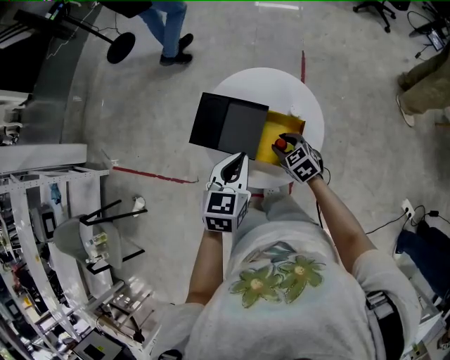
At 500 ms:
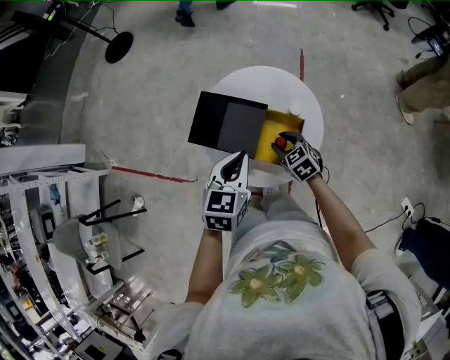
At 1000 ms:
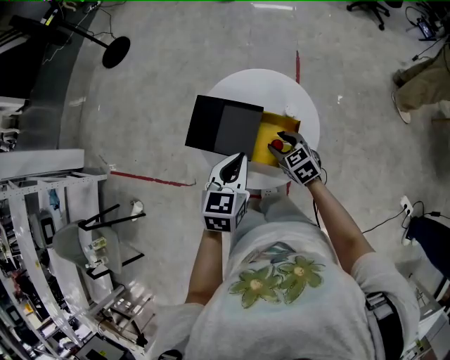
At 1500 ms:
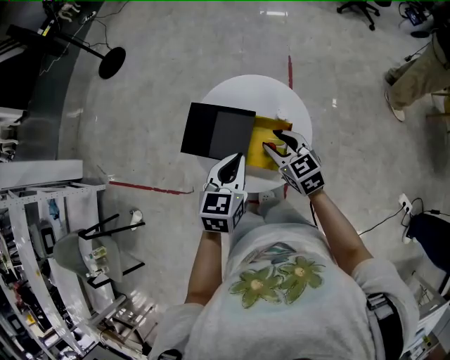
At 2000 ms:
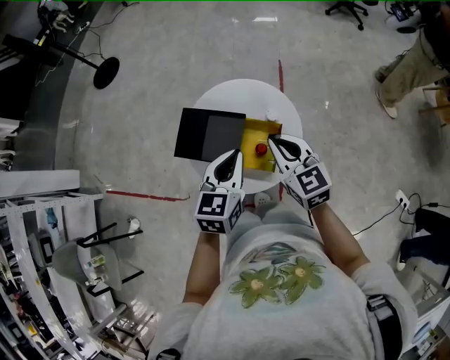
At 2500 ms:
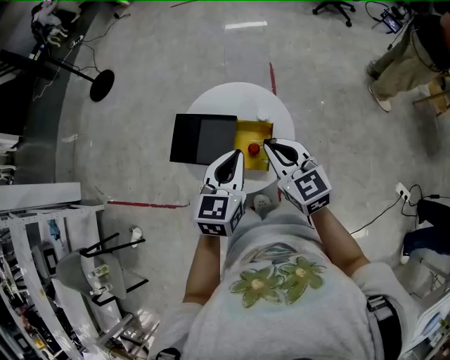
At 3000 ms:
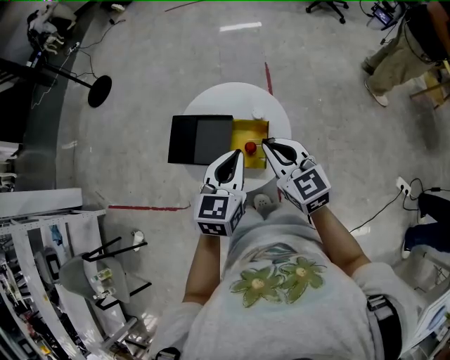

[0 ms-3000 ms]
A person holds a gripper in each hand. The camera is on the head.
0 ms to 1500 ms: The right gripper heads upward, covering approximately 15 cm.
1500 ms to 3000 ms: The right gripper shifts approximately 15 cm upward, backward and to the right, and closes, while the left gripper travels to the right and upward by about 10 cm.

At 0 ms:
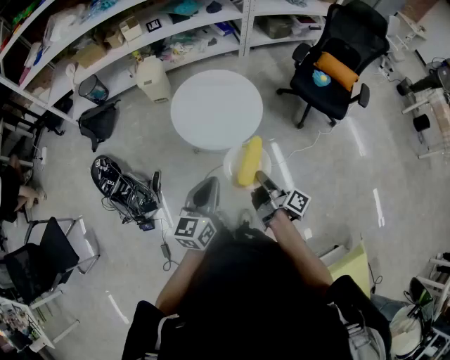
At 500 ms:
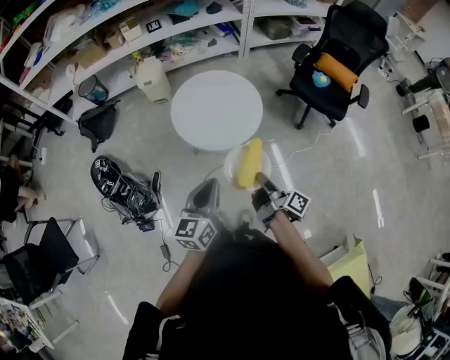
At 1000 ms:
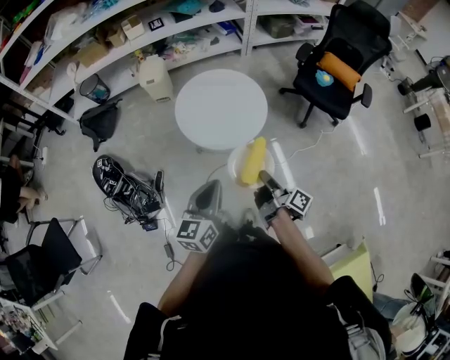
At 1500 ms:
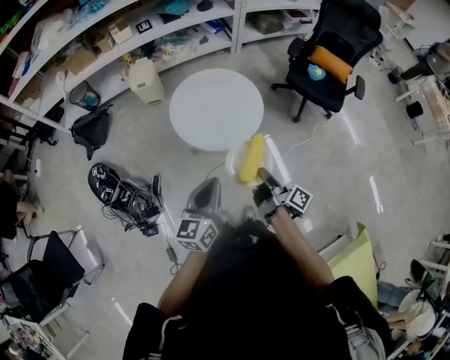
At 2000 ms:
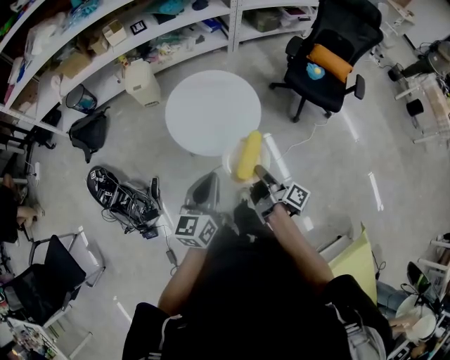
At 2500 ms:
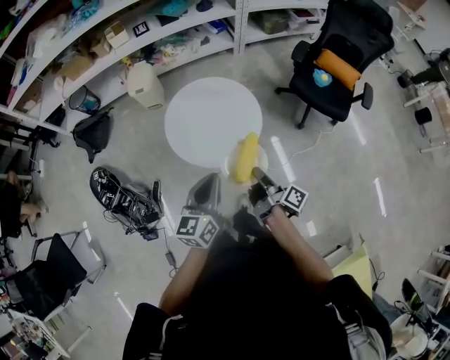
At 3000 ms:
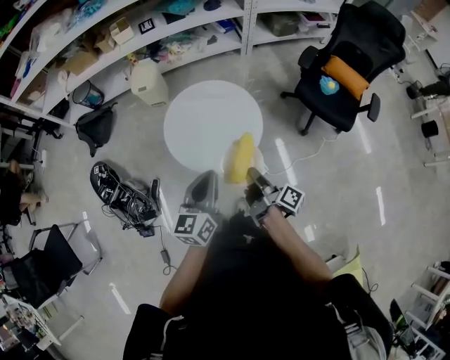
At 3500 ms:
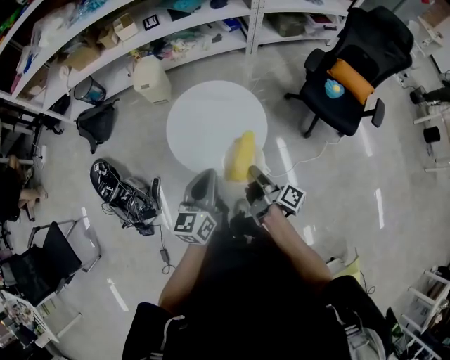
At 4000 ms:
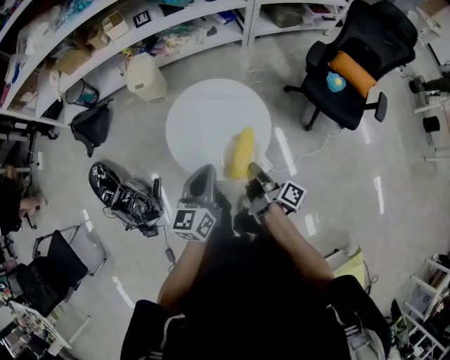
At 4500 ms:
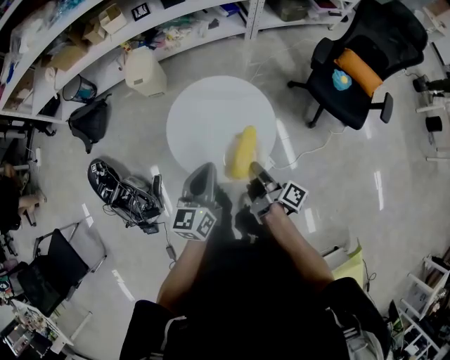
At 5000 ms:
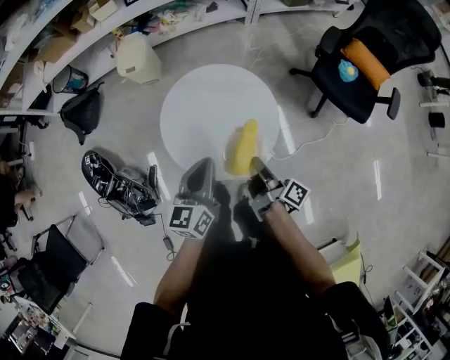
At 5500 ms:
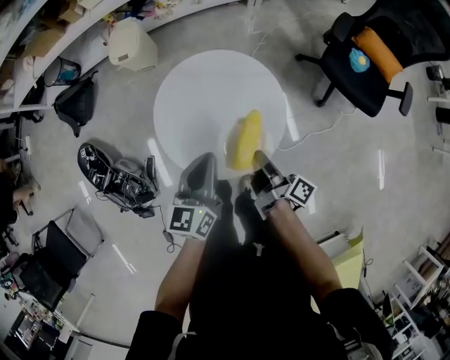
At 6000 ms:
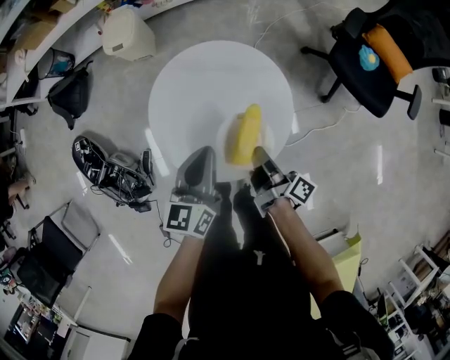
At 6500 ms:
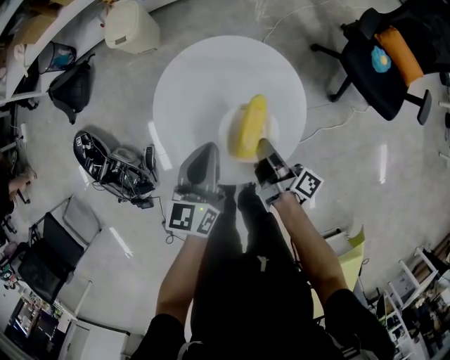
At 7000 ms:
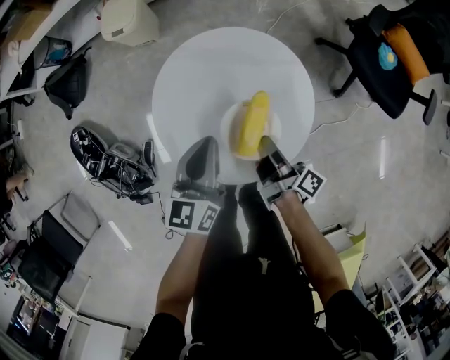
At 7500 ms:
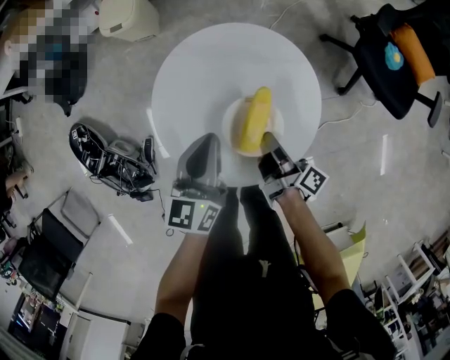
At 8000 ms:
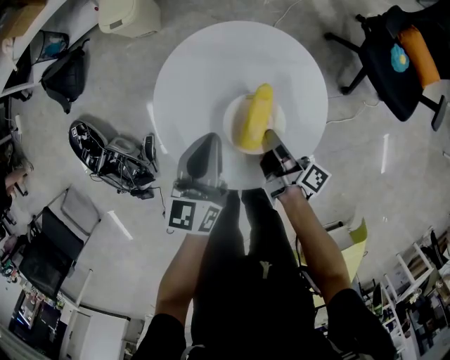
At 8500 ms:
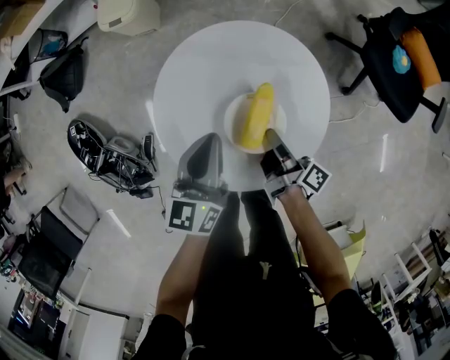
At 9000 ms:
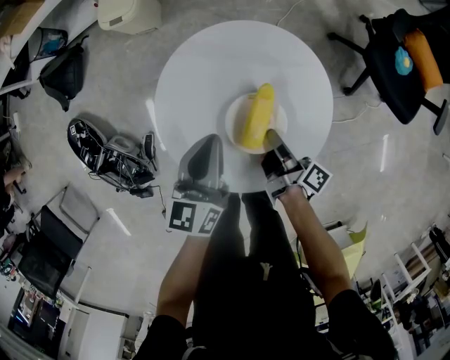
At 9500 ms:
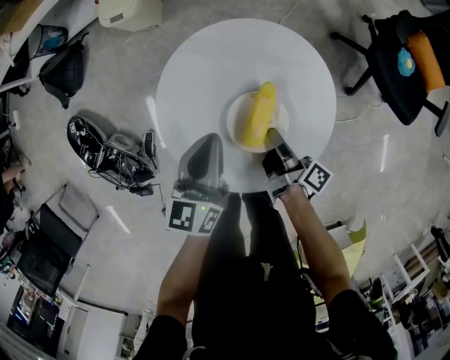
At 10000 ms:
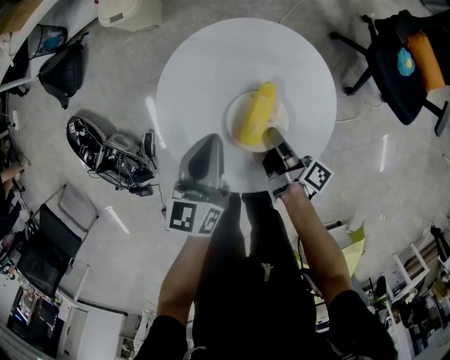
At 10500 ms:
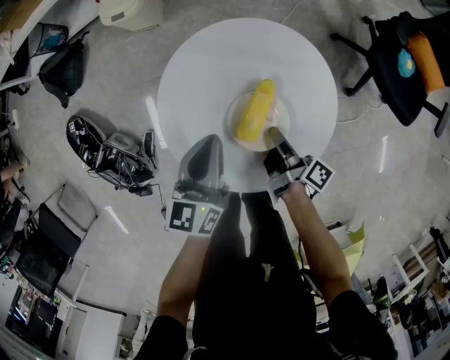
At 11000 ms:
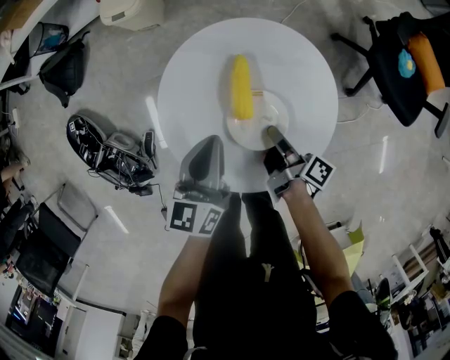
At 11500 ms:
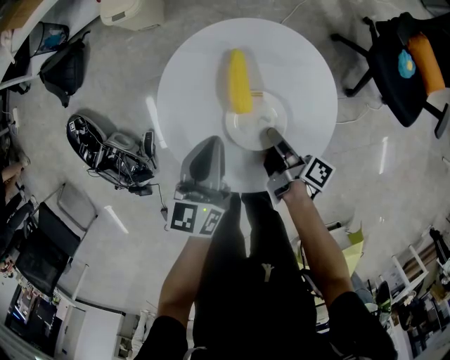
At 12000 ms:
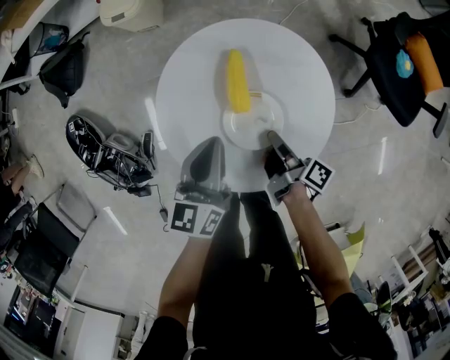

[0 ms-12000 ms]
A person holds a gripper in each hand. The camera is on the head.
0 ms to 2000 ms: The left gripper changes place by about 5 cm.
2000 ms to 4000 ms: The left gripper shifts by approximately 20 cm.
4000 ms to 6000 ms: The left gripper heads downward, covering approximately 15 cm.
6000 ms to 8000 ms: The left gripper shifts roughly 5 cm downward.

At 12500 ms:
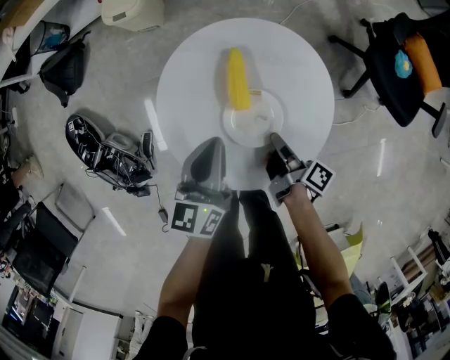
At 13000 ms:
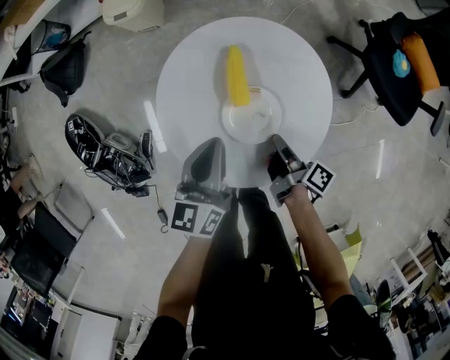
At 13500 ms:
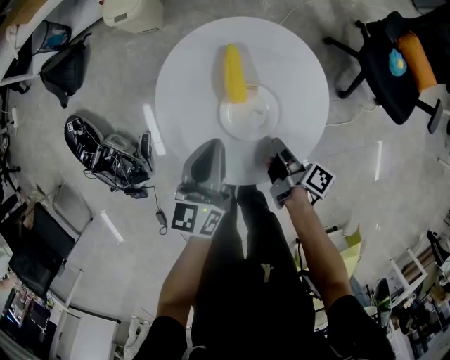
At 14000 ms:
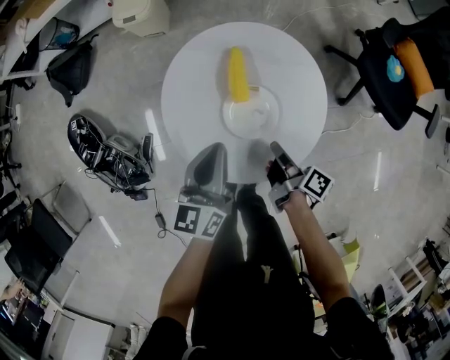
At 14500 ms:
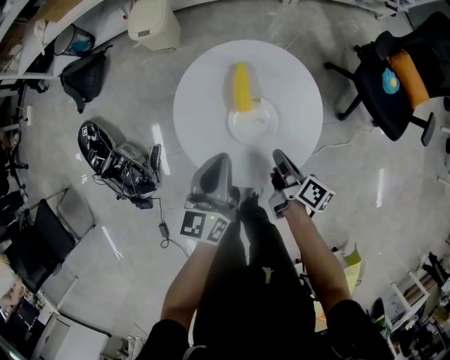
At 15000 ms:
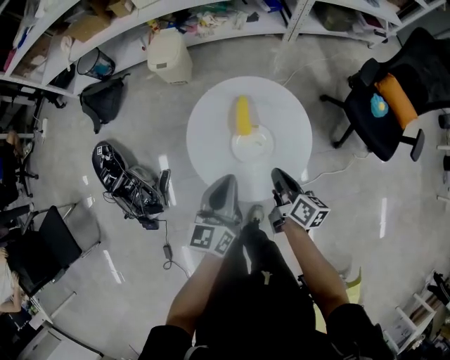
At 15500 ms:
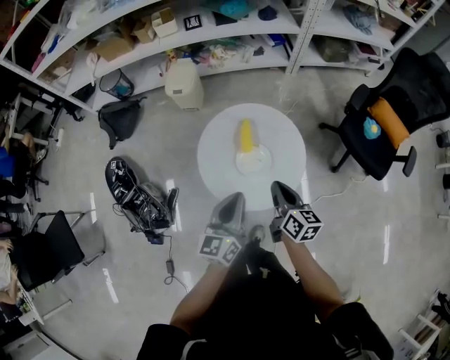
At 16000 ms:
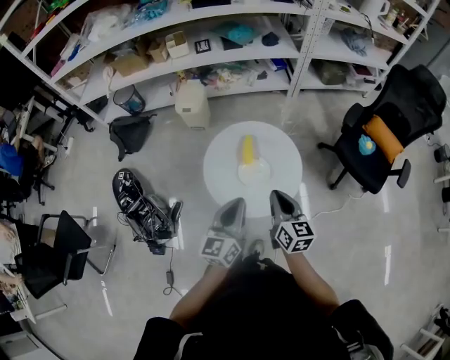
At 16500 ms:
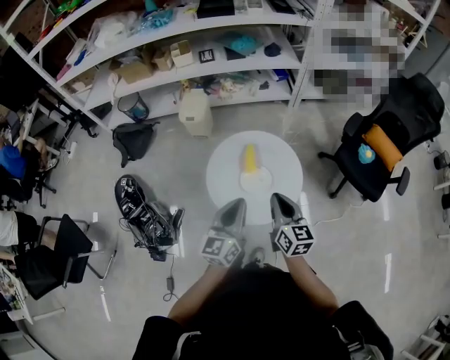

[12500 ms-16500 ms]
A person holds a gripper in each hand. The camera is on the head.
12500 ms to 14500 ms: The left gripper changes place by roughly 10 cm.
14500 ms to 16500 ms: The left gripper moves upward, approximately 15 cm.

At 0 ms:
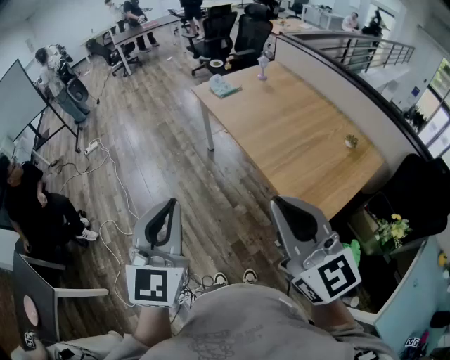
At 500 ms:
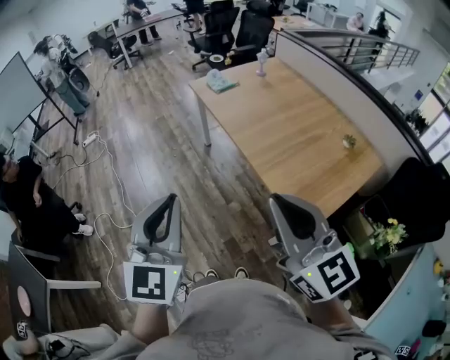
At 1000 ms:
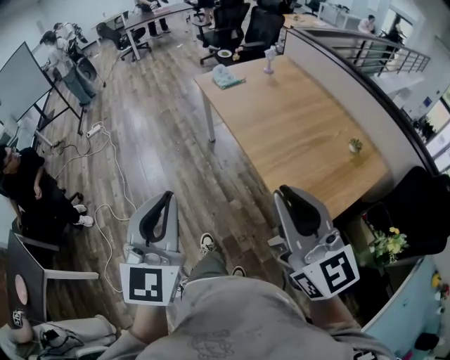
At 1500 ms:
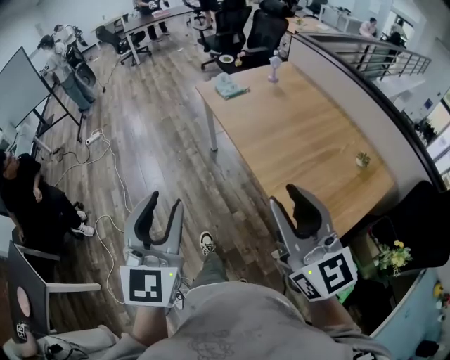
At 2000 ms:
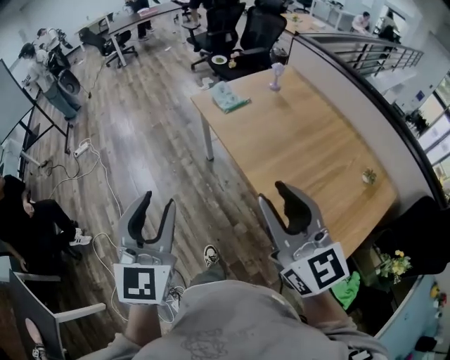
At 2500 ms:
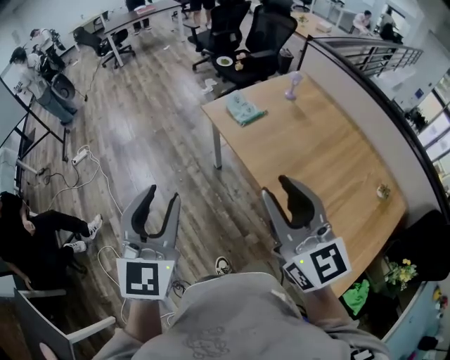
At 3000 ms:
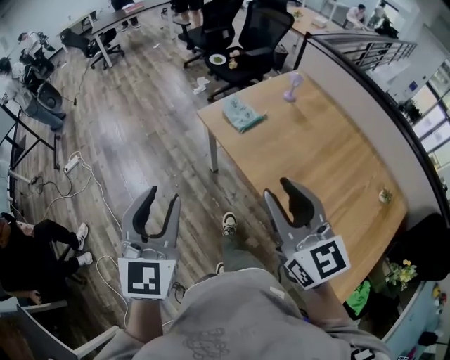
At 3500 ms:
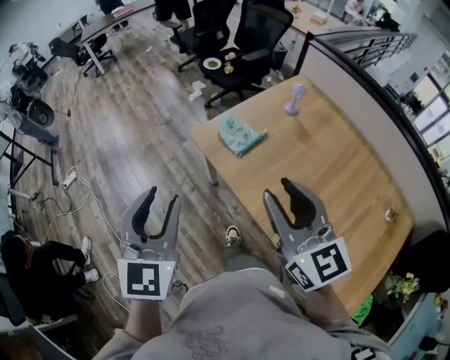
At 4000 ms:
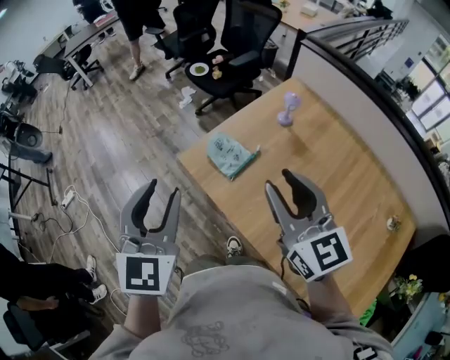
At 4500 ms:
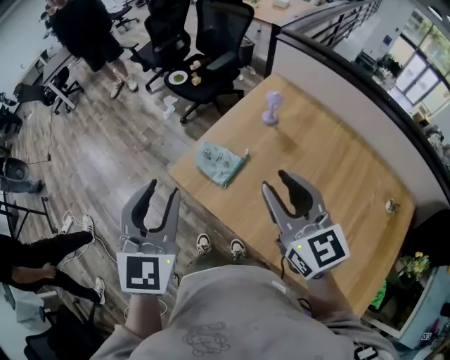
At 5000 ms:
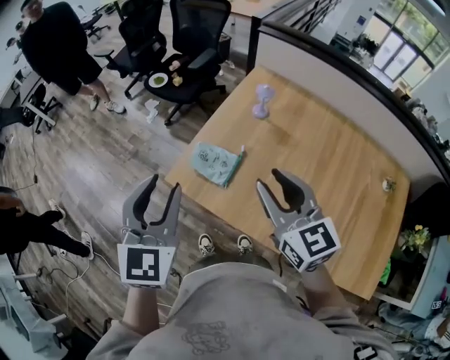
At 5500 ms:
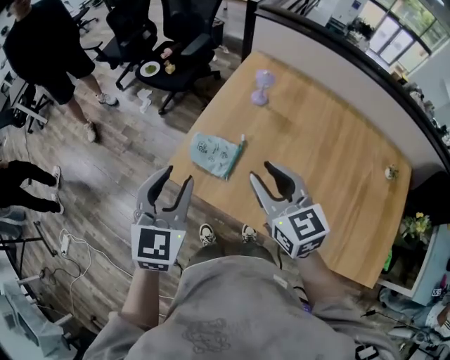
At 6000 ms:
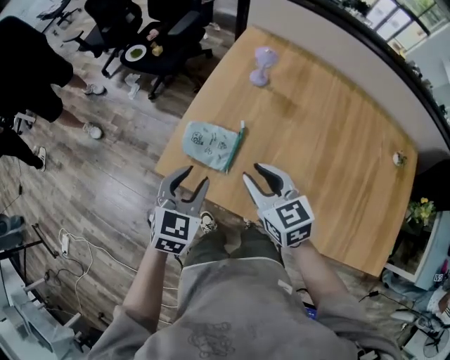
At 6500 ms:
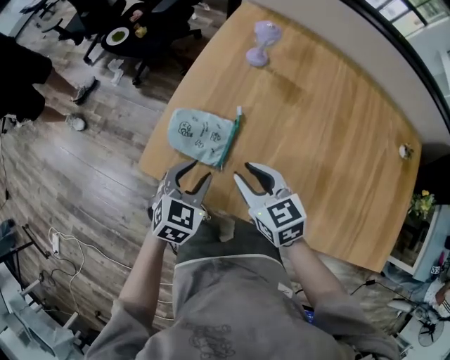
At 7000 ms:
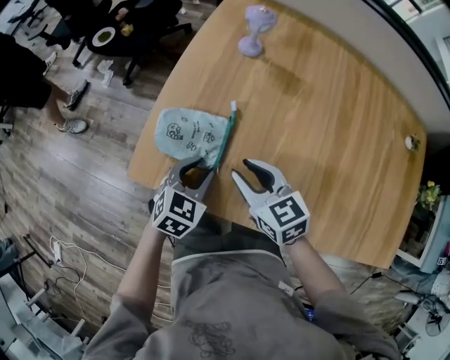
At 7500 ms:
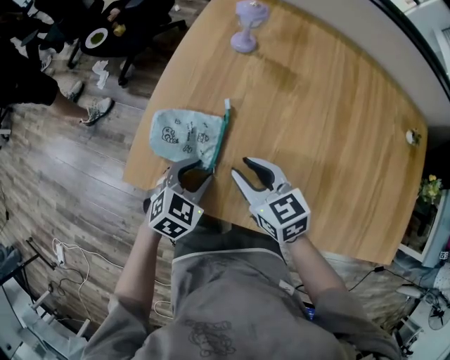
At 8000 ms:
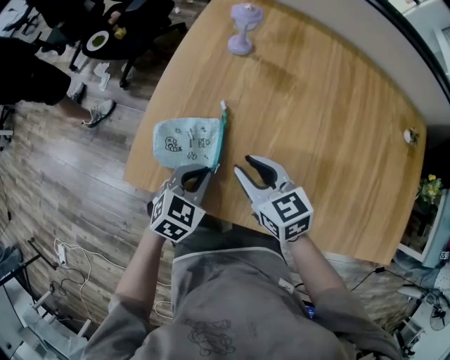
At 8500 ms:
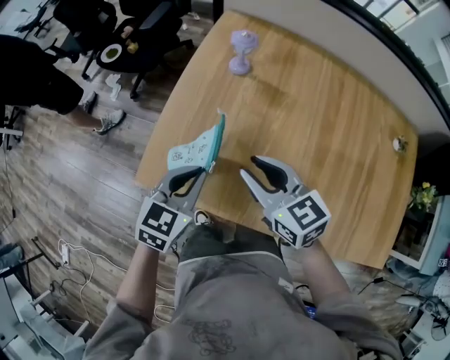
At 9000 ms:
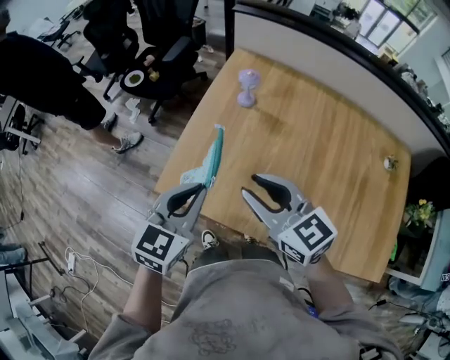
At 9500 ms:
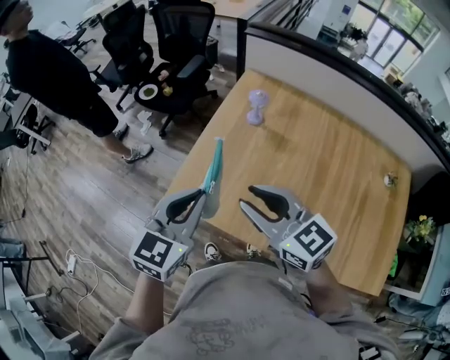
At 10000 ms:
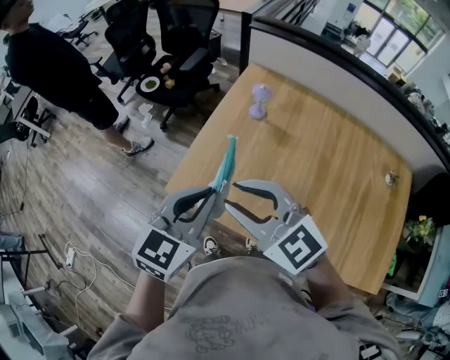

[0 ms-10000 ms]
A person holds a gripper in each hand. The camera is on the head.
0 ms to 2000 ms: The two grippers go about 30 cm forward. The left gripper opens up; the right gripper opens its fingers.
2000 ms to 4000 ms: Both grippers are carried forward, about 50 cm.
4000 ms to 6000 ms: Both grippers move downward, about 25 cm. The left gripper rotates some 40 degrees. The right gripper swivels approximately 30 degrees.
6000 ms to 8000 ms: Both grippers travel together downward, some 15 cm. The left gripper swivels roughly 20 degrees, and closes its fingers.
8000 ms to 10000 ms: Both grippers move upward, about 35 cm. The right gripper changes its angle by about 40 degrees, while the left gripper swivels approximately 30 degrees.
